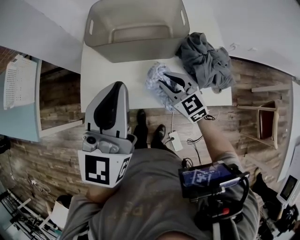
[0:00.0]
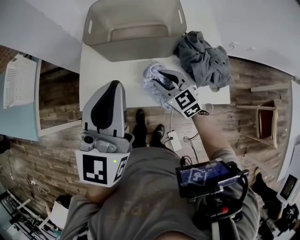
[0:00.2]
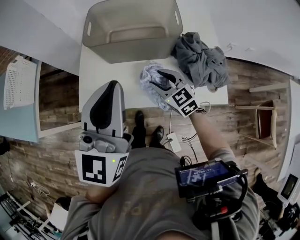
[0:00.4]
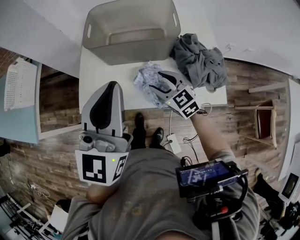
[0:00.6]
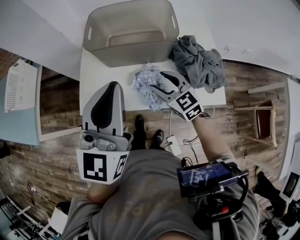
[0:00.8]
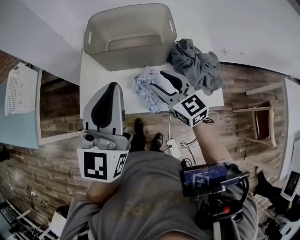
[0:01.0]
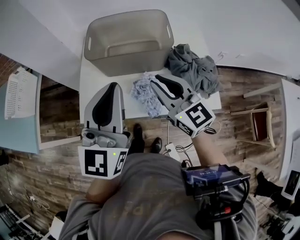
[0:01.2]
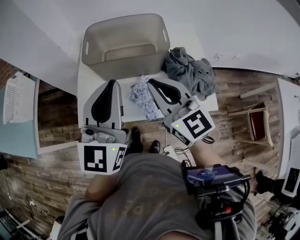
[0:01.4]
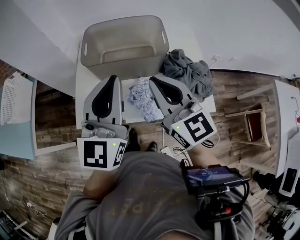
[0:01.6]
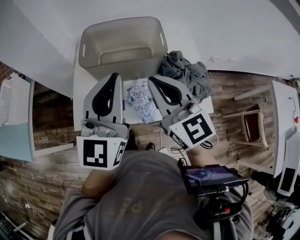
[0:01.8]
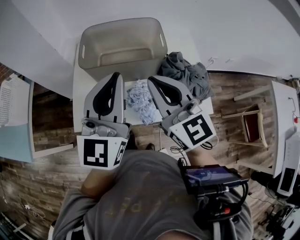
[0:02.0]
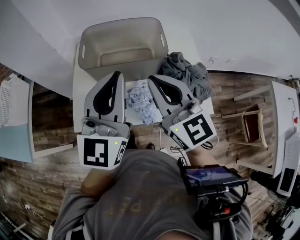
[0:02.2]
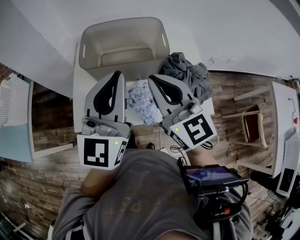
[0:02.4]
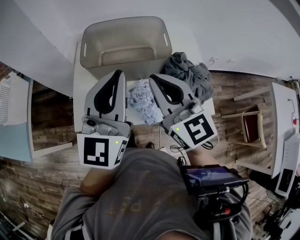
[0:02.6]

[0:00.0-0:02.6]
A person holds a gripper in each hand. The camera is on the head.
0:00.0 to 0:01.2: The right gripper heads upward, covering approximately 15 cm, changes its angle by some 20 degrees, and opens, then closes again.
0:01.2 to 0:02.6: The left gripper goes some 5 cm forward. Meanwhile the right gripper shifts approximately 5 cm upward.

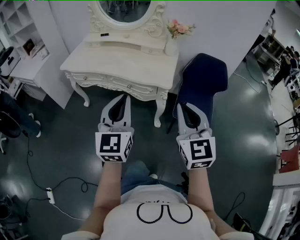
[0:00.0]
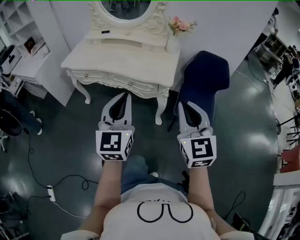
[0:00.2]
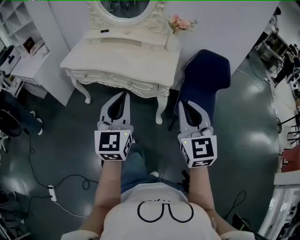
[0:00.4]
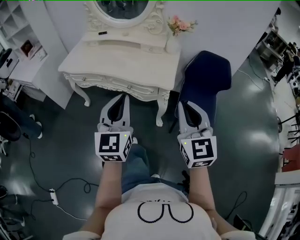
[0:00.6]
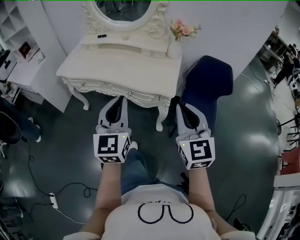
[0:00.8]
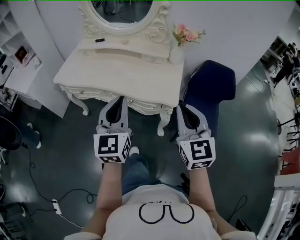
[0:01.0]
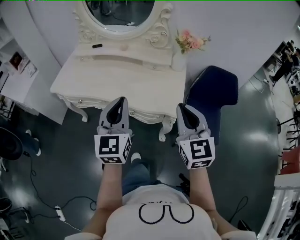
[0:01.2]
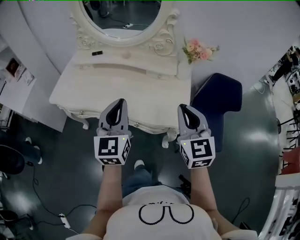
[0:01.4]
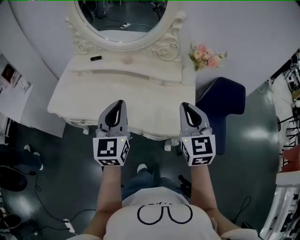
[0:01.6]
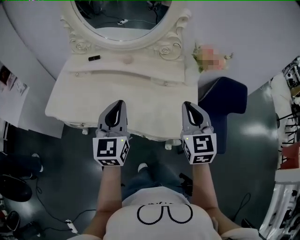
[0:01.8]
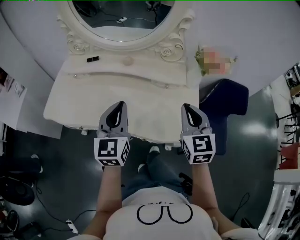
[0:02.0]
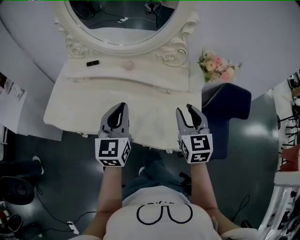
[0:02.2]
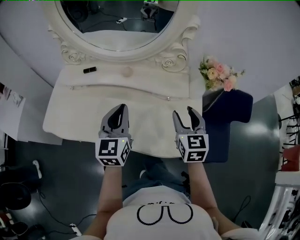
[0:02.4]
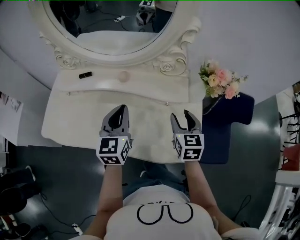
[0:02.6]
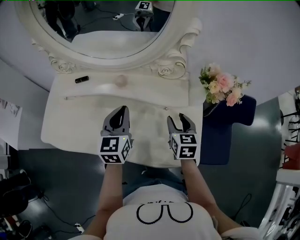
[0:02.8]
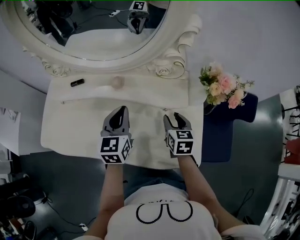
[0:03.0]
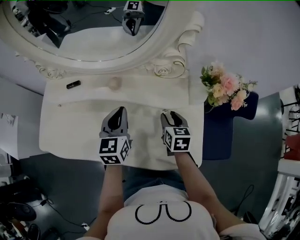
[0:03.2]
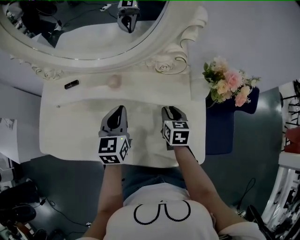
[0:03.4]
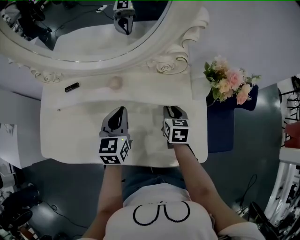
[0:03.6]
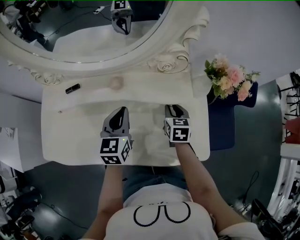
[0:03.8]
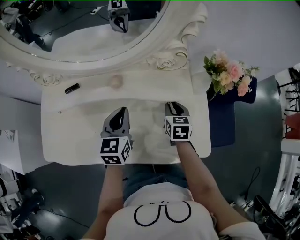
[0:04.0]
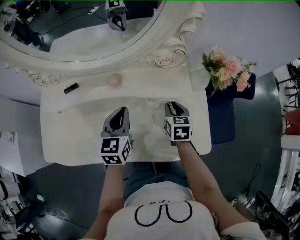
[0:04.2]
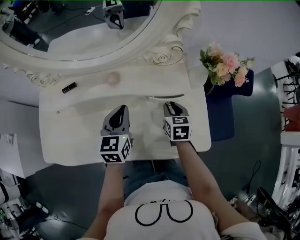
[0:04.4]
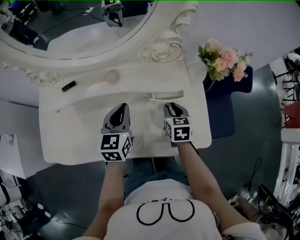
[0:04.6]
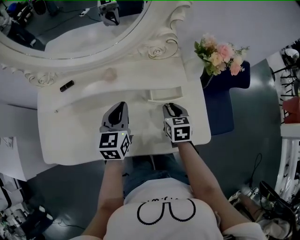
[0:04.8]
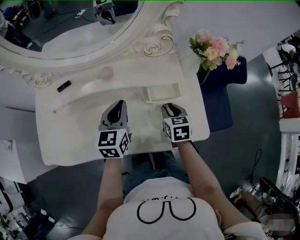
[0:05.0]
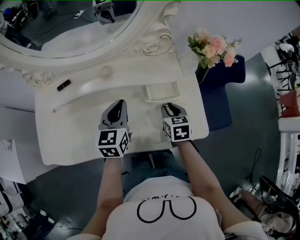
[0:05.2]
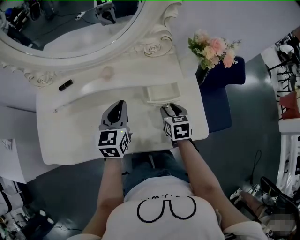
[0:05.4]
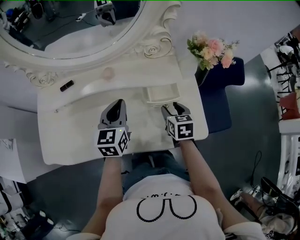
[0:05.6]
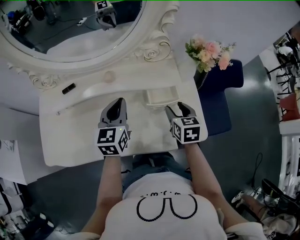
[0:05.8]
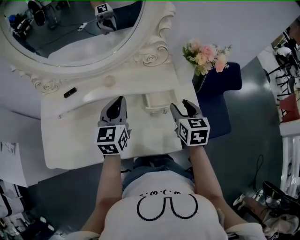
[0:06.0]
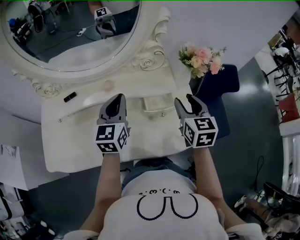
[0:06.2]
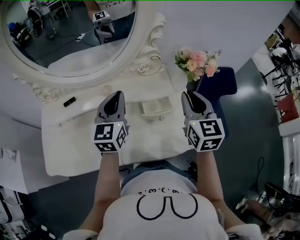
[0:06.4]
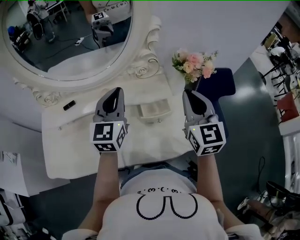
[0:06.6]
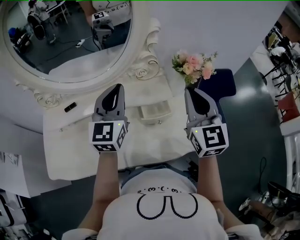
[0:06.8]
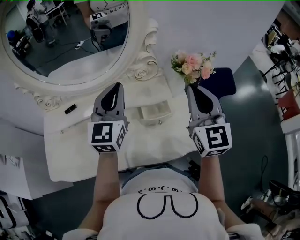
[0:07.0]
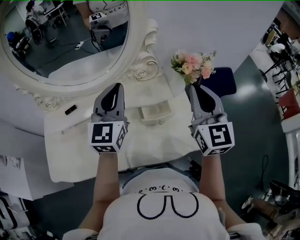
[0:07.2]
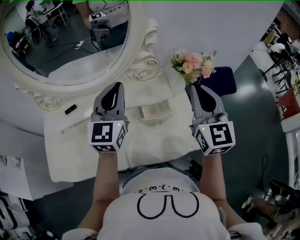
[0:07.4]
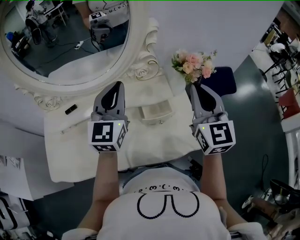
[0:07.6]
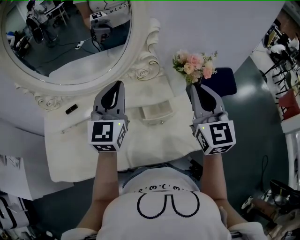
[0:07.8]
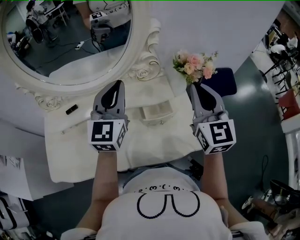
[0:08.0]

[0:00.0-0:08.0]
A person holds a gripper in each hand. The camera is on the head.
0:00.0 to 0:01.6: The pair of grippers is taken forward, approximately 40 cm.
0:01.6 to 0:03.2: The left gripper is displaced forward and downward by roughly 30 cm, and changes its angle by some 20 degrees, while the right gripper heads downward and forward, covering approximately 35 cm, rotates some 40 degrees, and opens its fingers.
0:03.2 to 0:04.8: The right gripper shifts by about 5 cm.
0:04.8 to 0:06.4: The left gripper moves upward, approximately 10 cm; the right gripper travels upward by approximately 25 cm, rotates some 30 degrees, and opens, then closes again.
0:06.4 to 0:08.0: The two grippers go roughly 10 cm upward.

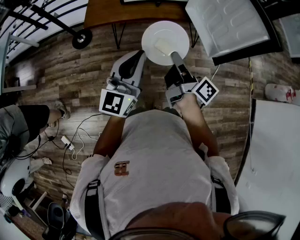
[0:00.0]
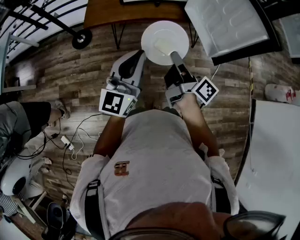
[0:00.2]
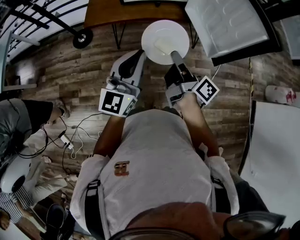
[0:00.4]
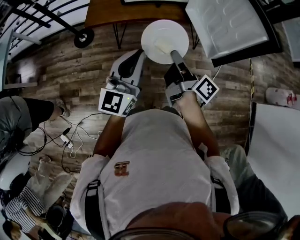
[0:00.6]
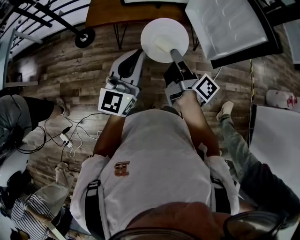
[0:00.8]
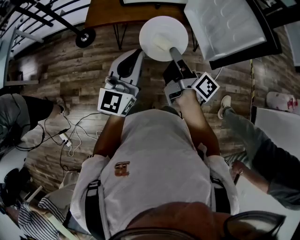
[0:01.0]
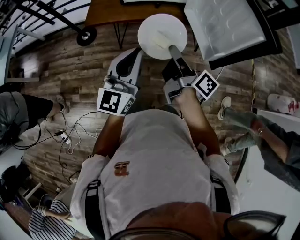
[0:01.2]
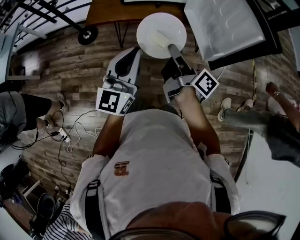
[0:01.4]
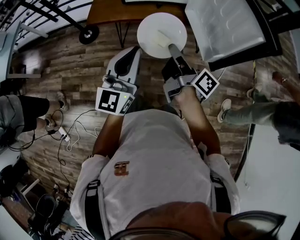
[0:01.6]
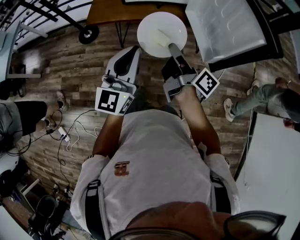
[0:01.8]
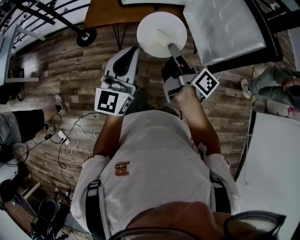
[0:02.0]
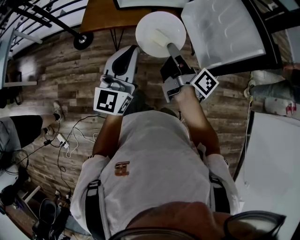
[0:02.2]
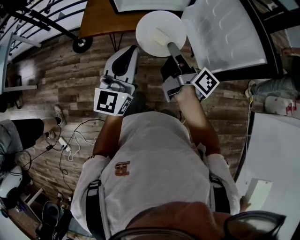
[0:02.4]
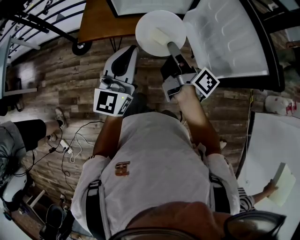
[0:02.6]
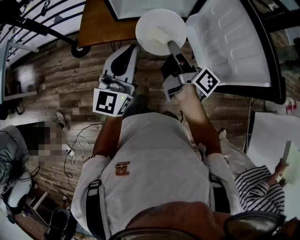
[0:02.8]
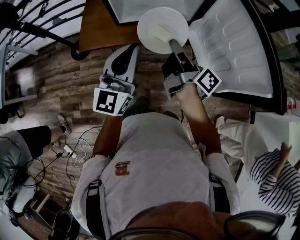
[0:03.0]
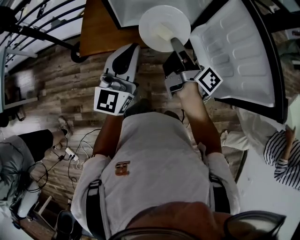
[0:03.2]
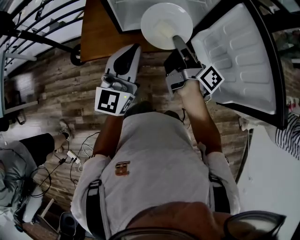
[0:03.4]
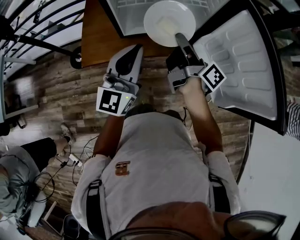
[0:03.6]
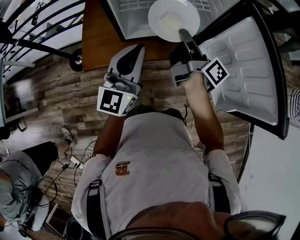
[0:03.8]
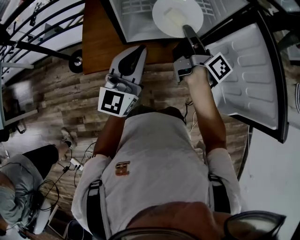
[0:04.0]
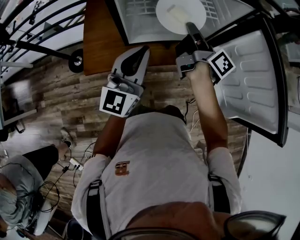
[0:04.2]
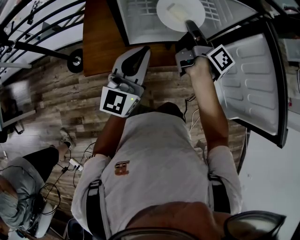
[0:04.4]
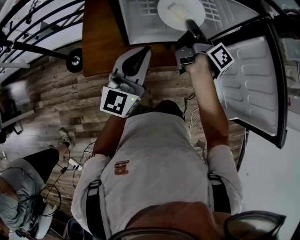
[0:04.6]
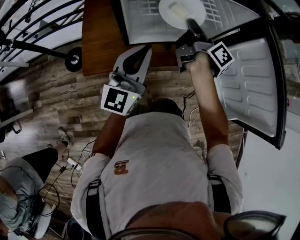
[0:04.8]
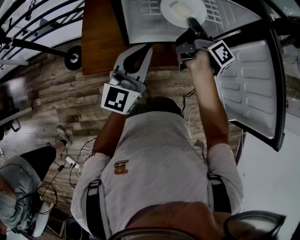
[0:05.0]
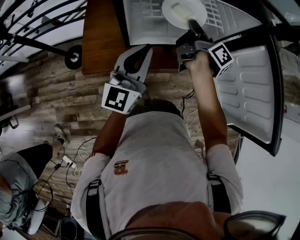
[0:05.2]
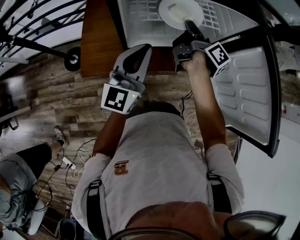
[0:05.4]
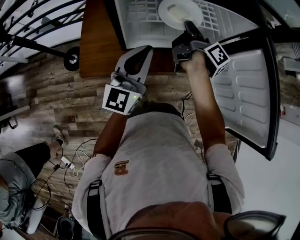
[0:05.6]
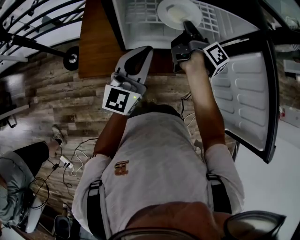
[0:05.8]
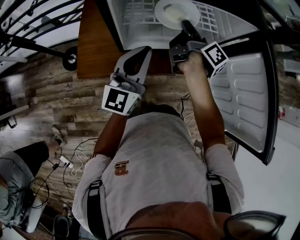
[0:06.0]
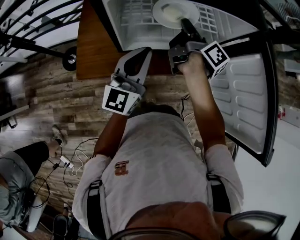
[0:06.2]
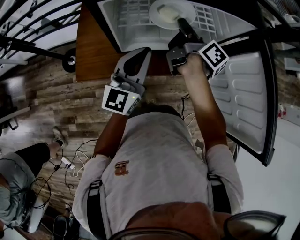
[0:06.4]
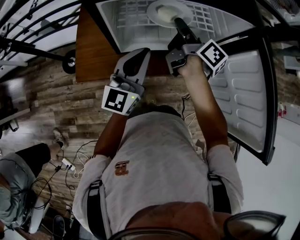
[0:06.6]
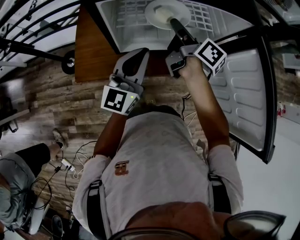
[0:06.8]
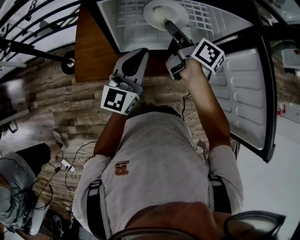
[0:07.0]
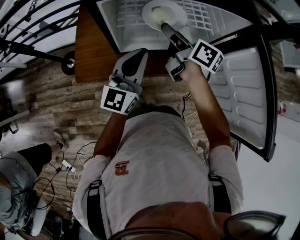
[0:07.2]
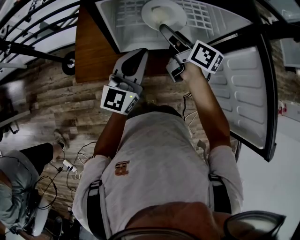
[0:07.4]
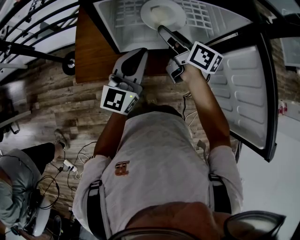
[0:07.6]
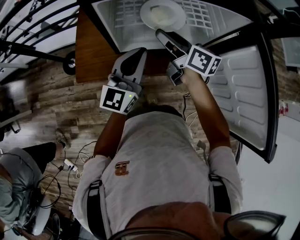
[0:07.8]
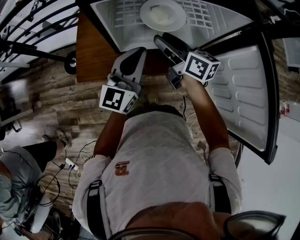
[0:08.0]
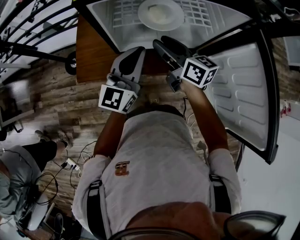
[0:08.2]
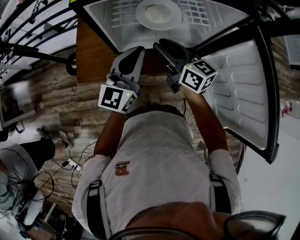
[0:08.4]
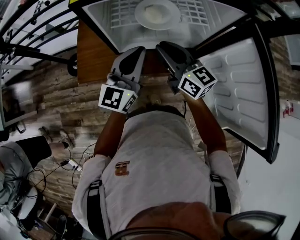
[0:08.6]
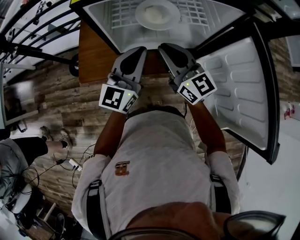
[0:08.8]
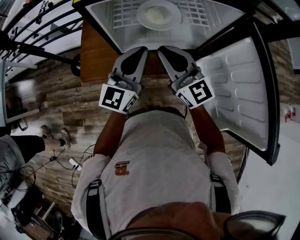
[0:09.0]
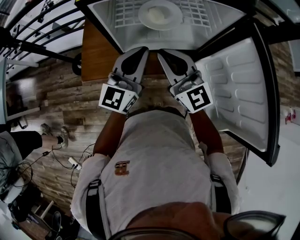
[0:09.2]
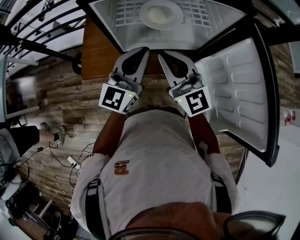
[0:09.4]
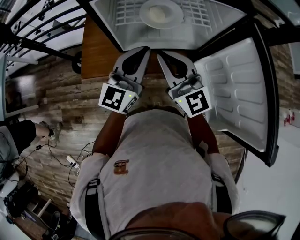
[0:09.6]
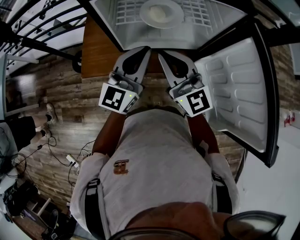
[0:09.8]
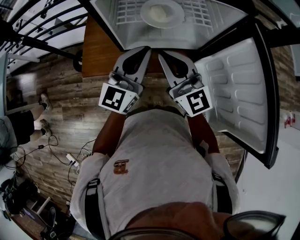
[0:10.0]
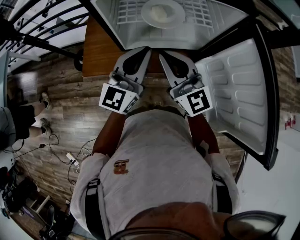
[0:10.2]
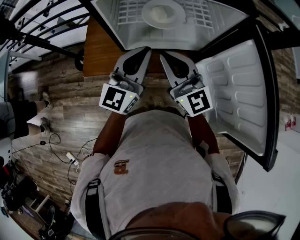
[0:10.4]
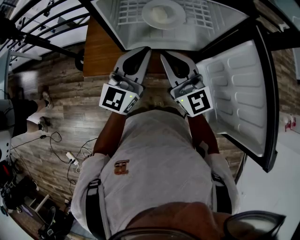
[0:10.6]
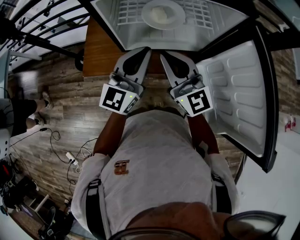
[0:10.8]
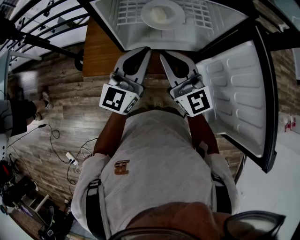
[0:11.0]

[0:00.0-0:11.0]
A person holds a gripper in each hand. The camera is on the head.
0:00.0 to 0:01.6: The left gripper goes roughly 5 cm to the right. Meanwhile the right gripper is displaced forward by some 5 cm.
0:01.6 to 0:03.2: The two grippers go roughly 25 cm forward.
0:03.2 to 0:04.8: The left gripper moves forward and to the left, about 15 cm. The right gripper goes approximately 20 cm forward.
0:04.8 to 0:06.2: The right gripper changes place by some 5 cm; the left gripper shifts by some 5 cm.
0:06.2 to 0:07.8: The right gripper shifts approximately 5 cm to the left, rotates some 40 degrees, and opens.
0:07.8 to 0:09.4: The right gripper is displaced backward and upward by roughly 15 cm, twists about 50 degrees counterclockwise, seen from behind, and closes up.
0:09.4 to 0:11.0: The grippers stay close to where they were, moving slightly.

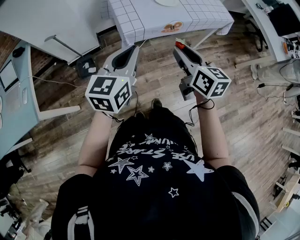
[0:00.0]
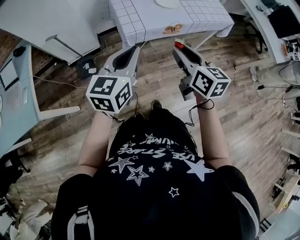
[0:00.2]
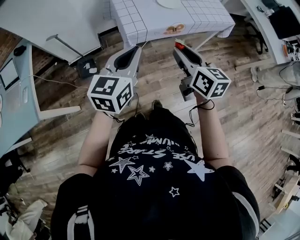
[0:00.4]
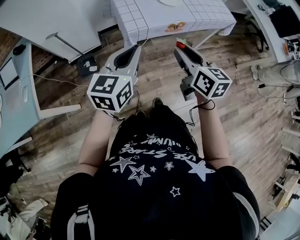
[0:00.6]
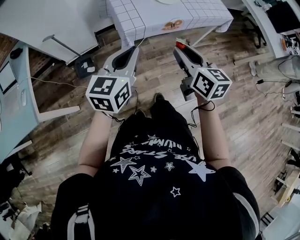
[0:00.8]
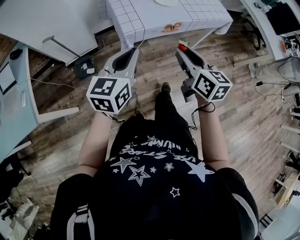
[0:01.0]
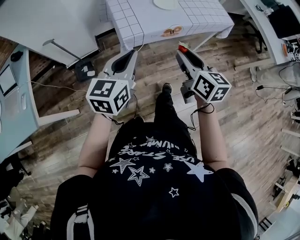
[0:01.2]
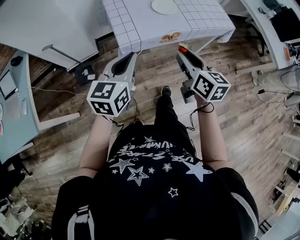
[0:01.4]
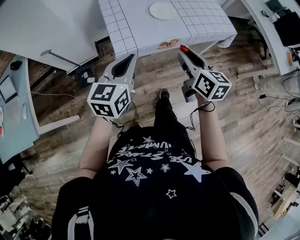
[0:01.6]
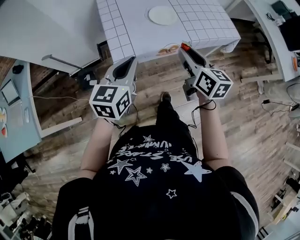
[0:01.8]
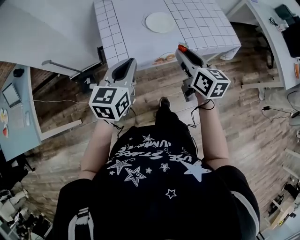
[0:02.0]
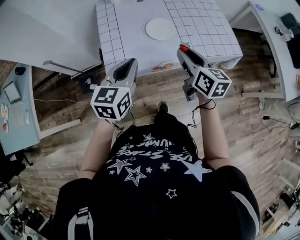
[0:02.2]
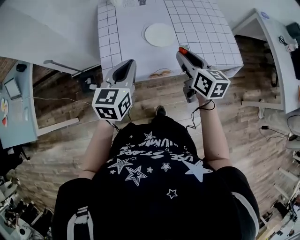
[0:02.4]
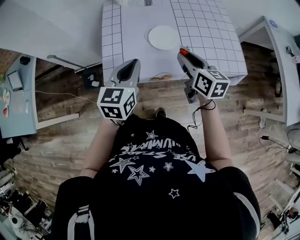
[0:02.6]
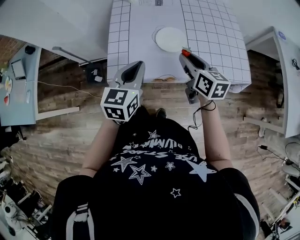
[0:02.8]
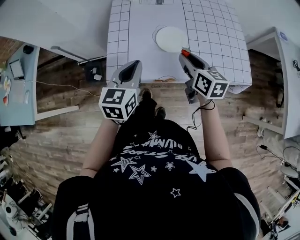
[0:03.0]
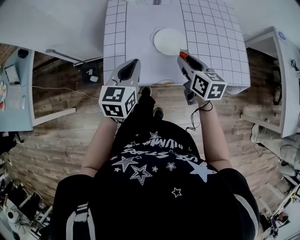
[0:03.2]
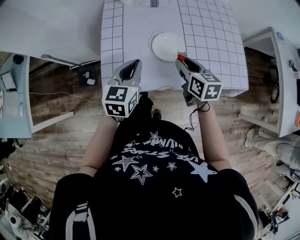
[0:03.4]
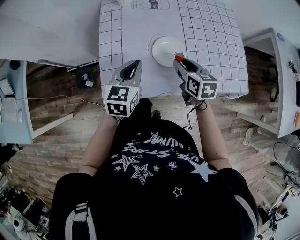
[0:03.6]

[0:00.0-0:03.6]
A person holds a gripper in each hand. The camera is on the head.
0:00.0 to 0:01.8: The left gripper heads forward, covering roughly 10 cm; the right gripper travels forward and to the right by approximately 15 cm.
0:01.8 to 0:03.6: The right gripper travels forward and downward by approximately 15 cm, and changes its angle by approximately 30 degrees; the left gripper moves forward, to the right and downward, approximately 15 cm.
